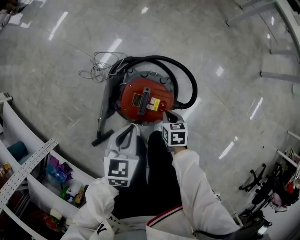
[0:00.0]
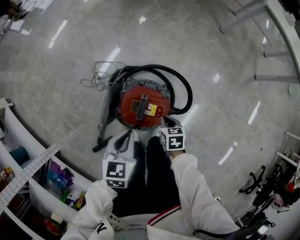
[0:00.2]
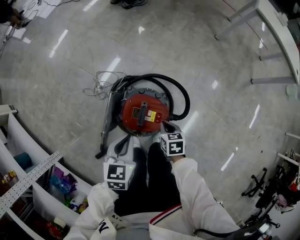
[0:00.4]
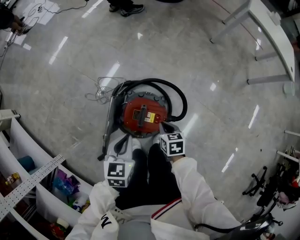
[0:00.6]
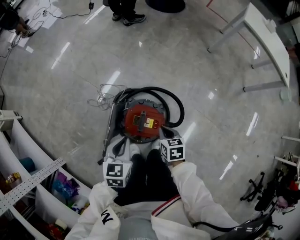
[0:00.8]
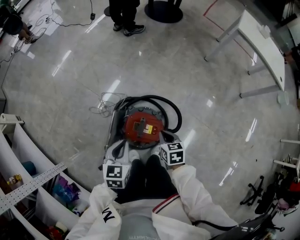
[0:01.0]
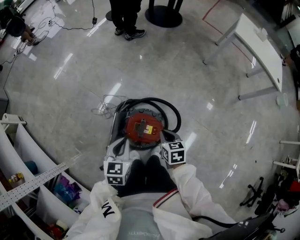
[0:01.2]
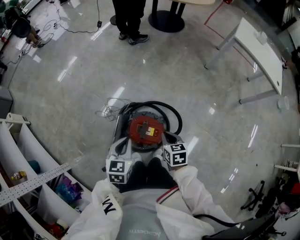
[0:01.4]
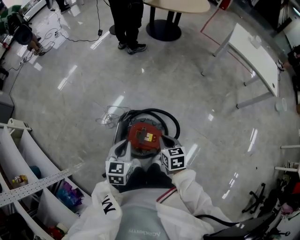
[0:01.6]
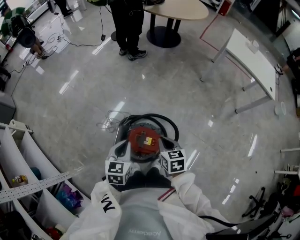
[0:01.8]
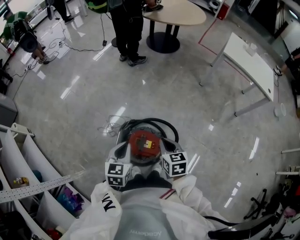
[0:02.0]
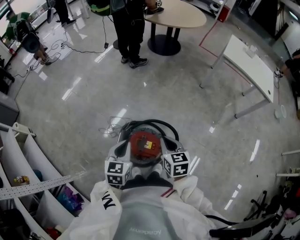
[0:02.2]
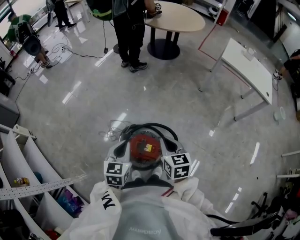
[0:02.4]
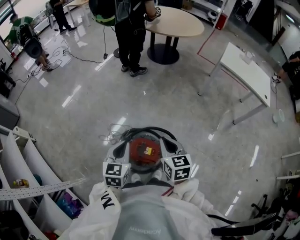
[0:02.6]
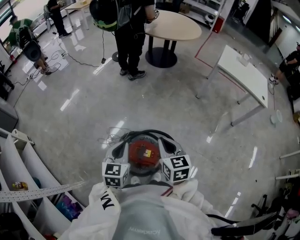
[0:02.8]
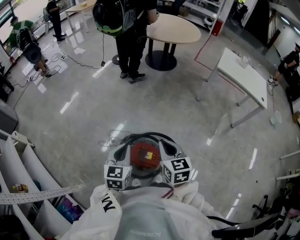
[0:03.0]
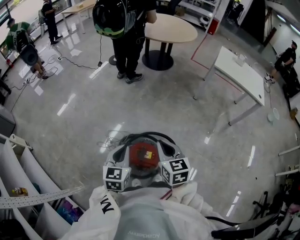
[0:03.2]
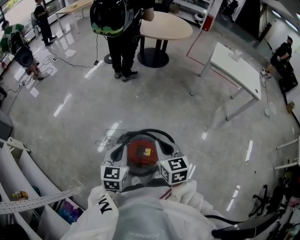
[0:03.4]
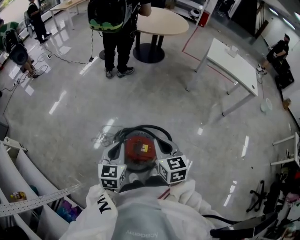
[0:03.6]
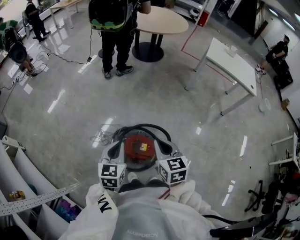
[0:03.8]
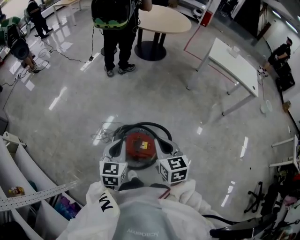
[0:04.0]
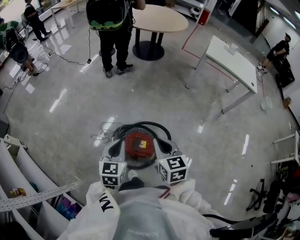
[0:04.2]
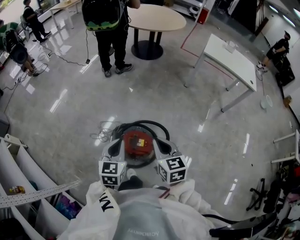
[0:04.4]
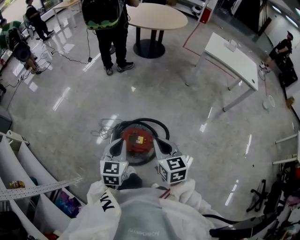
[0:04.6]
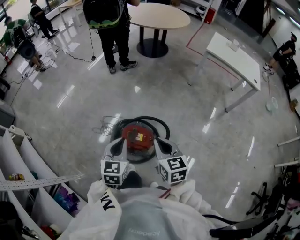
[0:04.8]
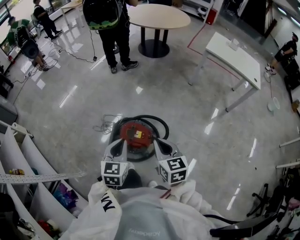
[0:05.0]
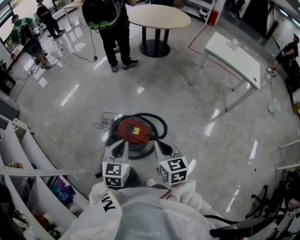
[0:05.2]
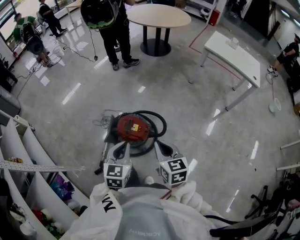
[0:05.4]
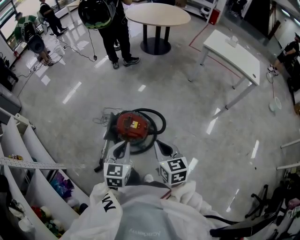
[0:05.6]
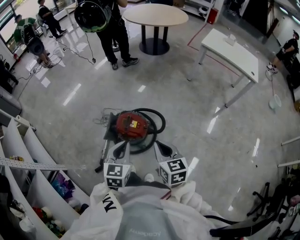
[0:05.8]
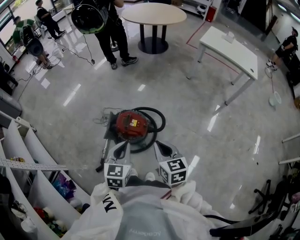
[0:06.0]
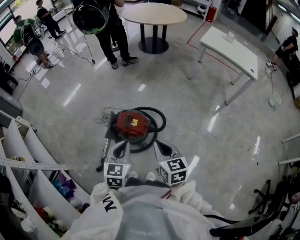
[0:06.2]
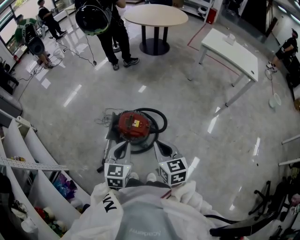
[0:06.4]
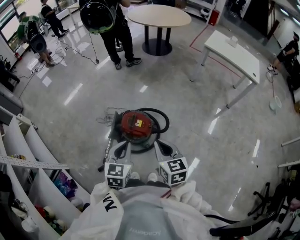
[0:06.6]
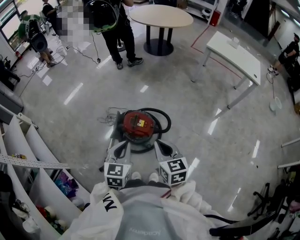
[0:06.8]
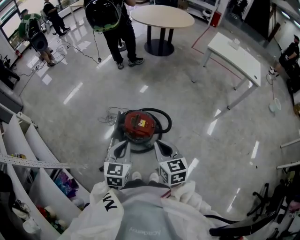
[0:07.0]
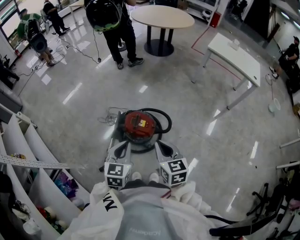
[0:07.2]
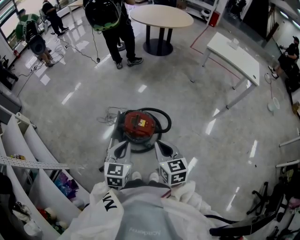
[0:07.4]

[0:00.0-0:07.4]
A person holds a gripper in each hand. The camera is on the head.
0.0 to 1.4 s: The right gripper shifts roughly 25 cm upward. The left gripper shifts about 15 cm upward.
1.4 to 3.0 s: The right gripper shifts approximately 20 cm upward, and changes its angle by some 20 degrees, while the left gripper moves upward, approximately 10 cm.
3.0 to 4.4 s: The right gripper moves backward, roughly 5 cm.
4.4 to 6.0 s: Both grippers move backward and to the right, about 20 cm.
6.0 to 7.4 s: The grippers both shift to the left by roughly 10 cm.

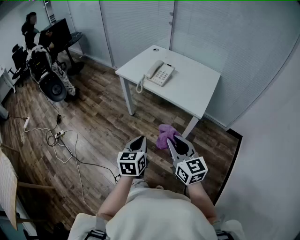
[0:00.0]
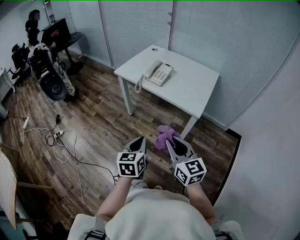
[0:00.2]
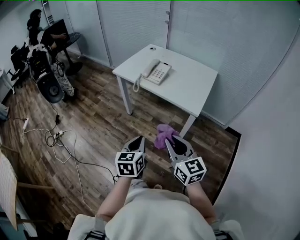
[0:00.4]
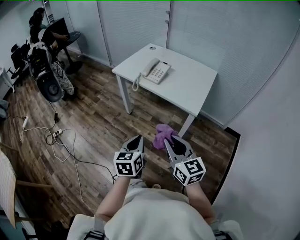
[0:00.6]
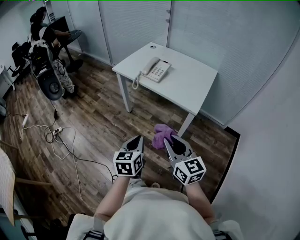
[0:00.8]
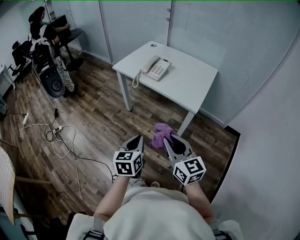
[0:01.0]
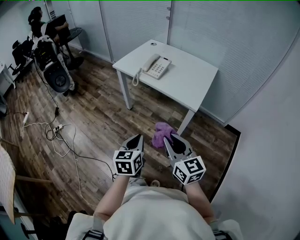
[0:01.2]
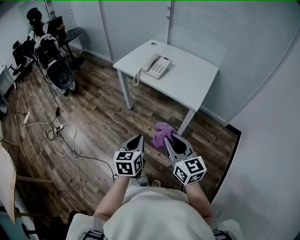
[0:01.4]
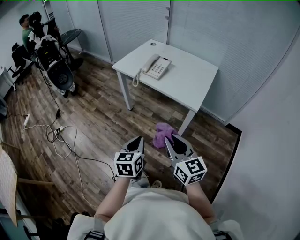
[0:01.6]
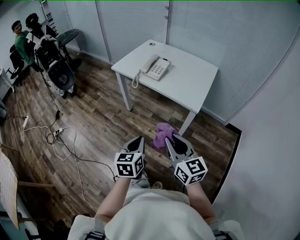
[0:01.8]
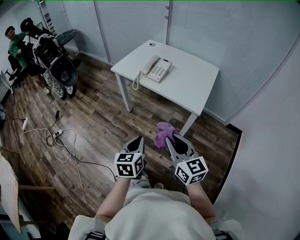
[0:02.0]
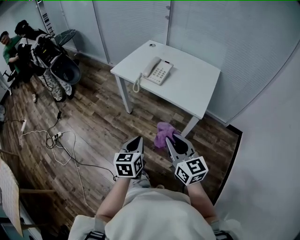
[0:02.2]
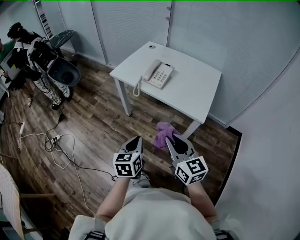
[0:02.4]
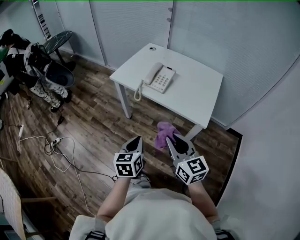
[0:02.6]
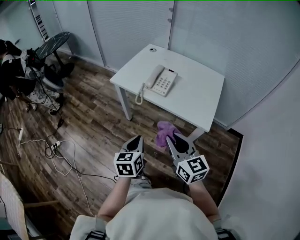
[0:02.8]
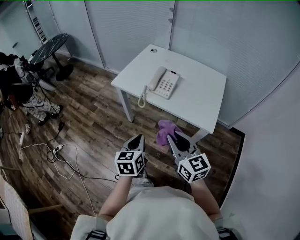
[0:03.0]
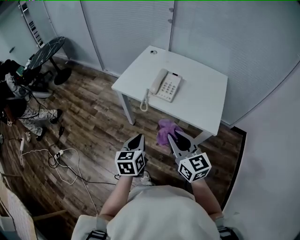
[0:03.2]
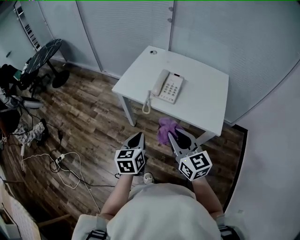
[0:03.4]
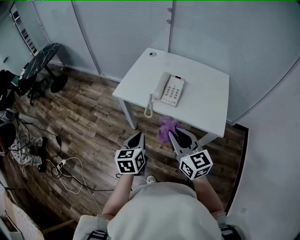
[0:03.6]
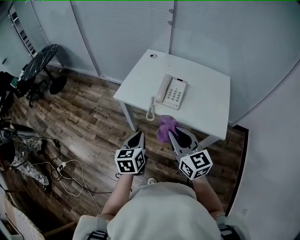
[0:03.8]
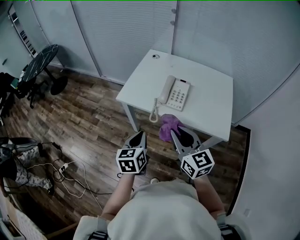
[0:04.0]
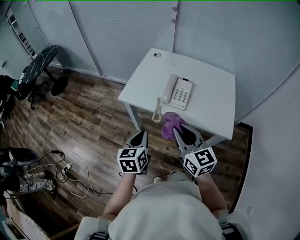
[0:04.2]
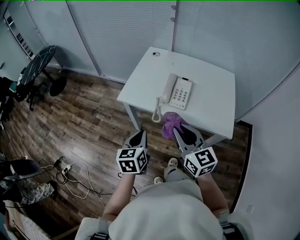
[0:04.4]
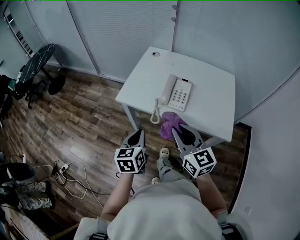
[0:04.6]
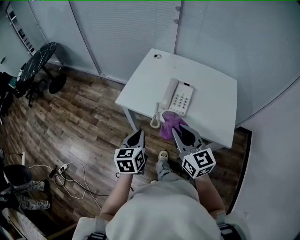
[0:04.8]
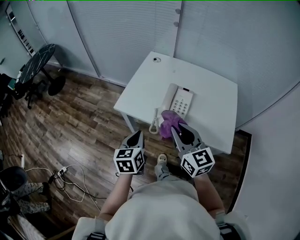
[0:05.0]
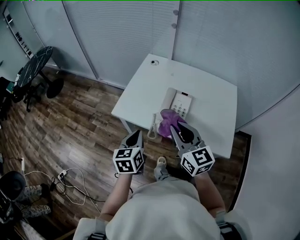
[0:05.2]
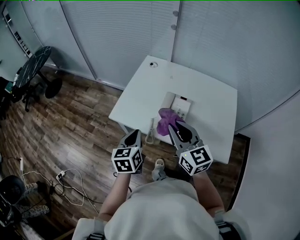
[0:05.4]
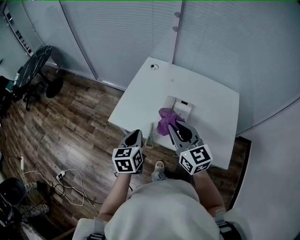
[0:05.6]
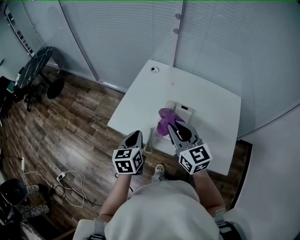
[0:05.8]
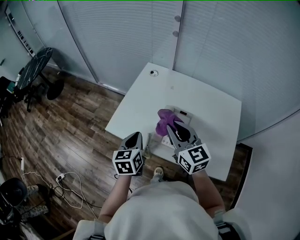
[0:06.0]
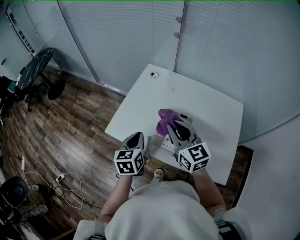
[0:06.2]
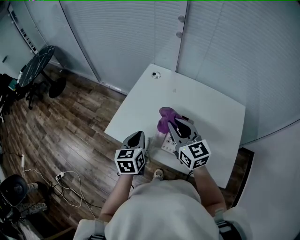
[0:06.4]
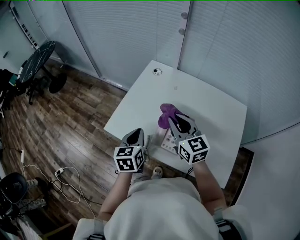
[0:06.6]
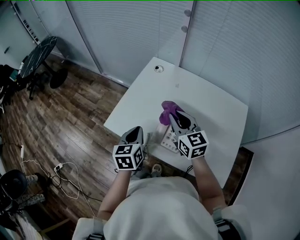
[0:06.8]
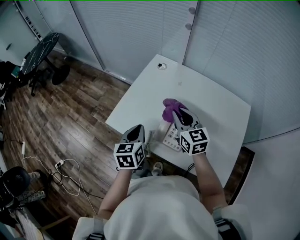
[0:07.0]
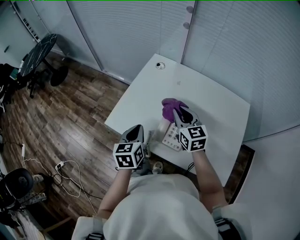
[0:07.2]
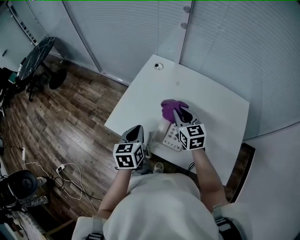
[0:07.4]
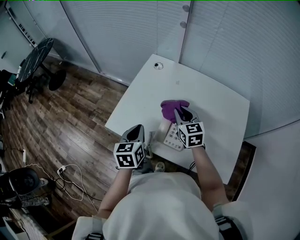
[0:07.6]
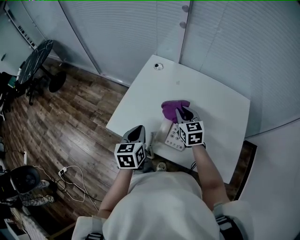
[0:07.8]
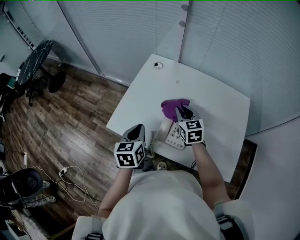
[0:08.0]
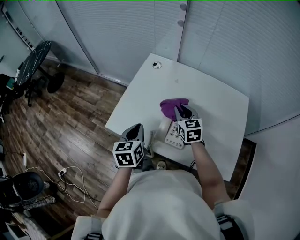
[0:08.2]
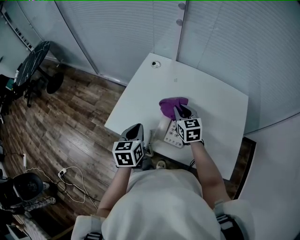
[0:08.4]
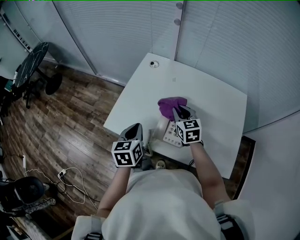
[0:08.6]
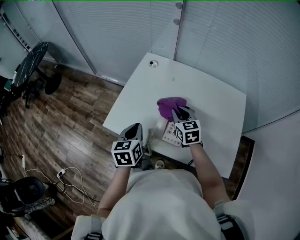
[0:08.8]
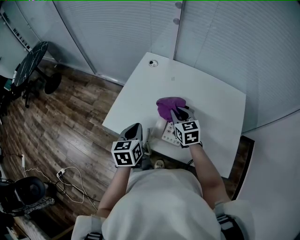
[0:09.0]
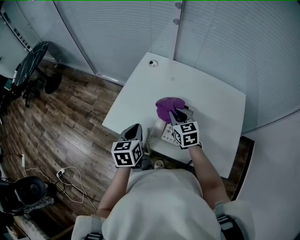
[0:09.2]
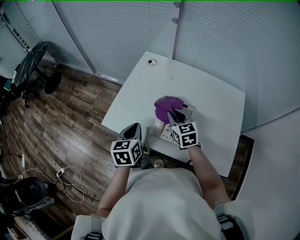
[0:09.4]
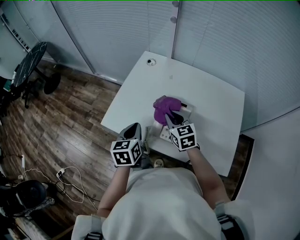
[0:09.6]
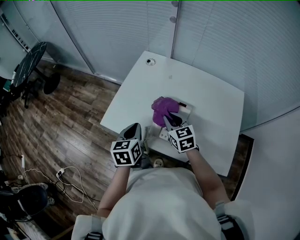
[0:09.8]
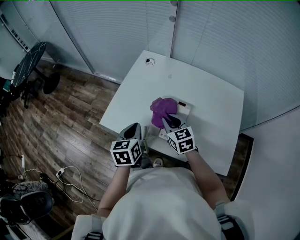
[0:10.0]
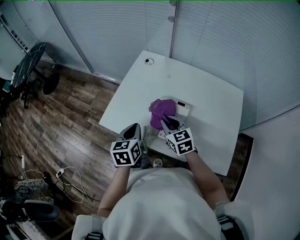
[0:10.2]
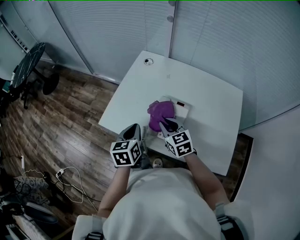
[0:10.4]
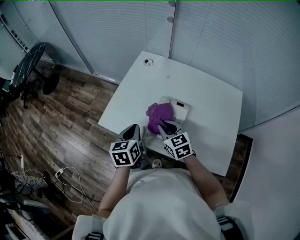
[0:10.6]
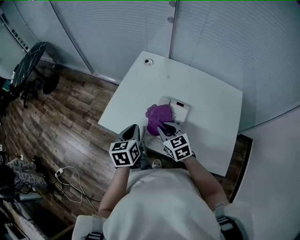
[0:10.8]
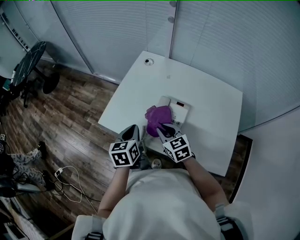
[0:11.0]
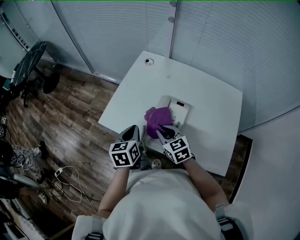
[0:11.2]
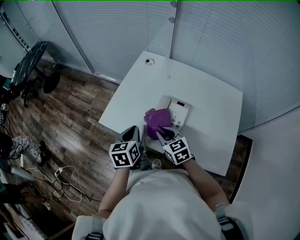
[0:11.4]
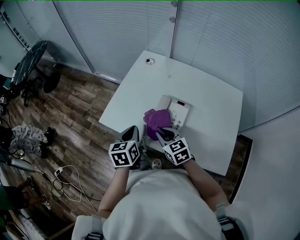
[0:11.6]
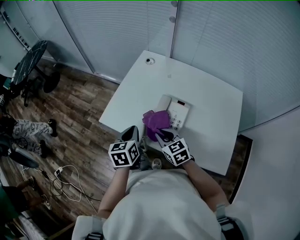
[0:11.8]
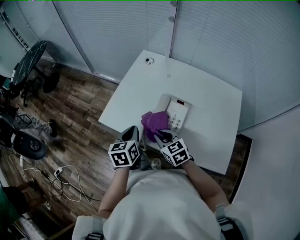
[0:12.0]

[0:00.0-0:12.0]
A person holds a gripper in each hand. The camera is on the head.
0.0 to 1.6 s: There are only small adjustments of the grippers.
1.6 to 3.0 s: Both grippers move forward, about 20 cm.
3.0 to 4.4 s: The grippers both shift forward and to the left by some 15 cm.
4.4 to 6.0 s: The two grippers go some 25 cm forward.
6.0 to 7.6 s: The right gripper heads downward and forward, covering about 15 cm.
7.6 to 9.0 s: The grippers move only a little.
9.0 to 10.4 s: The right gripper travels backward by about 5 cm.
10.4 to 12.0 s: The right gripper travels backward by roughly 5 cm.

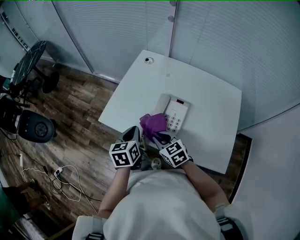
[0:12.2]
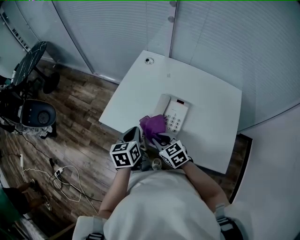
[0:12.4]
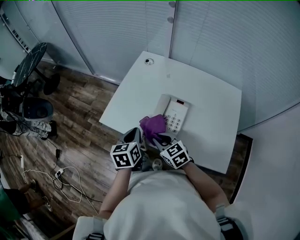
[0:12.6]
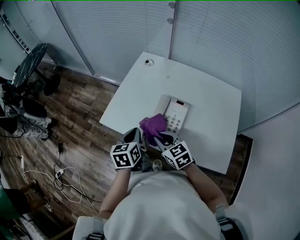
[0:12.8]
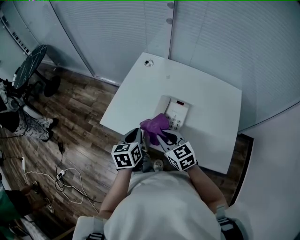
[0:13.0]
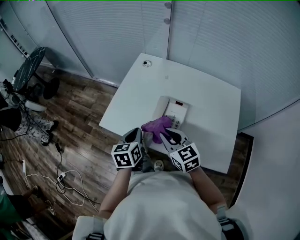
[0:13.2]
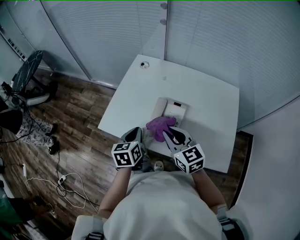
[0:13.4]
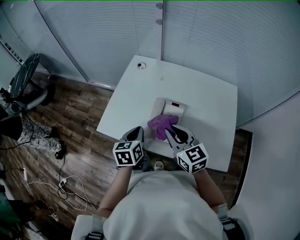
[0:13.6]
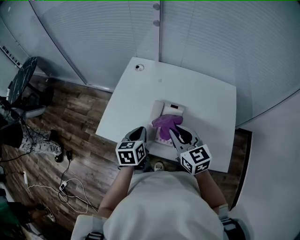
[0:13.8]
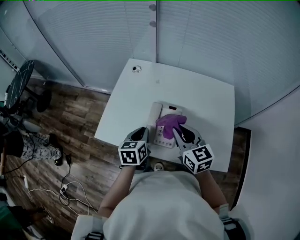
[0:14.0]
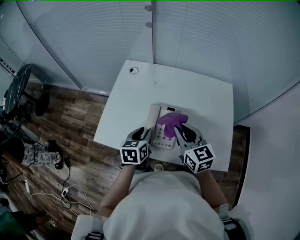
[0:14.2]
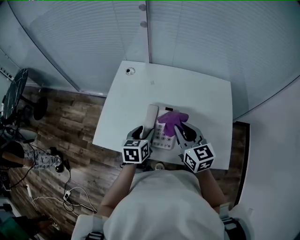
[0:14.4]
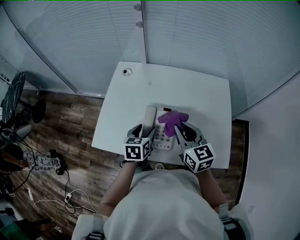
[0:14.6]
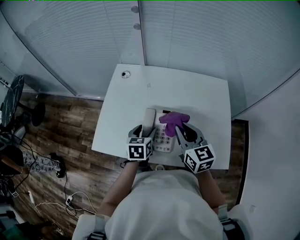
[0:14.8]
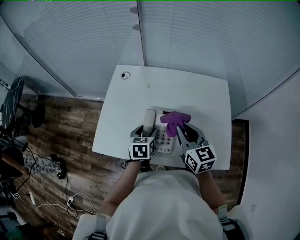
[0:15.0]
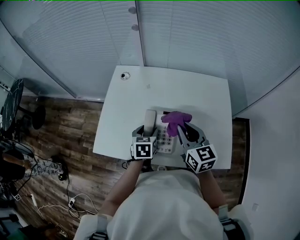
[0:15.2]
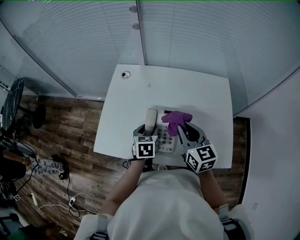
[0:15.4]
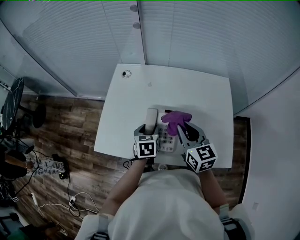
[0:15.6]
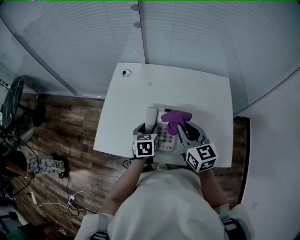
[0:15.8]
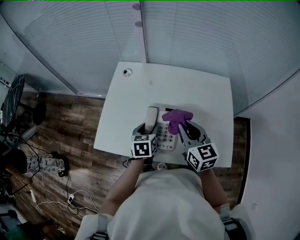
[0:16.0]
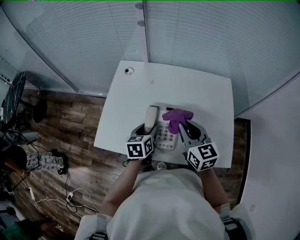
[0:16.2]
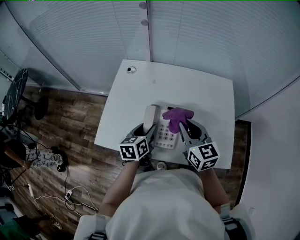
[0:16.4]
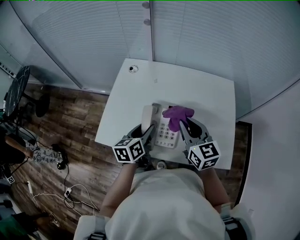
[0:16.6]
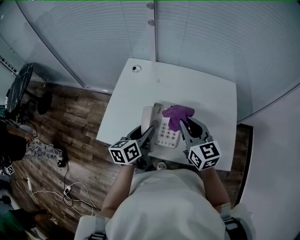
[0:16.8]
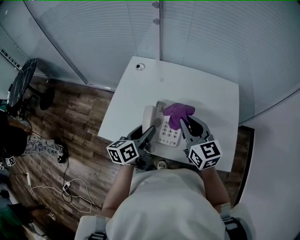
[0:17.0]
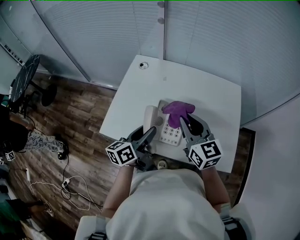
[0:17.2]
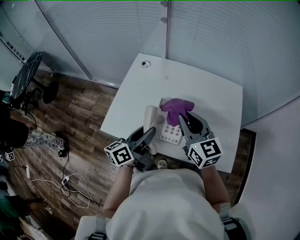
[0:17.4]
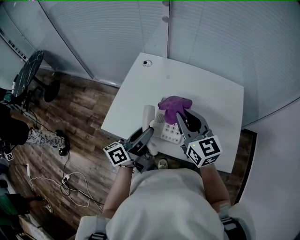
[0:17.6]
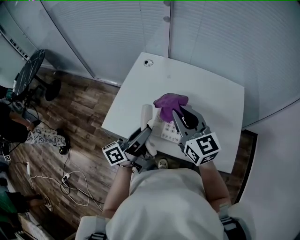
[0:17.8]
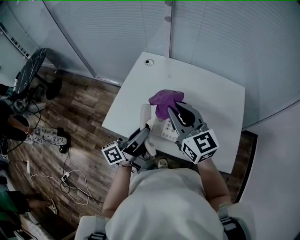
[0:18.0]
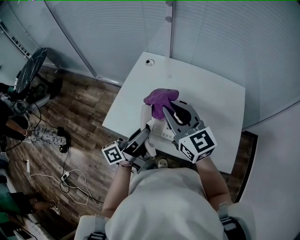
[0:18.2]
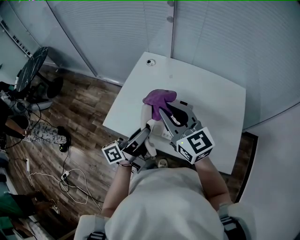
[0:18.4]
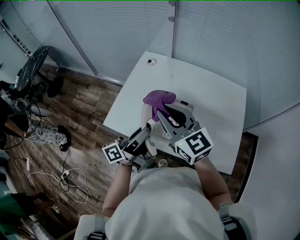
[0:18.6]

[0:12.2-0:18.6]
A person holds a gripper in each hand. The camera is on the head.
12.2 to 13.8 s: The left gripper heads to the right, covering roughly 5 cm. The right gripper heads upward and to the right, covering approximately 15 cm, and changes its angle by approximately 30 degrees.
13.8 to 15.4 s: The left gripper is displaced forward, to the right and downward by some 10 cm, and opens. Meanwhile the right gripper shifts roughly 5 cm to the right.
15.4 to 17.0 s: The left gripper goes roughly 10 cm upward and backward, and turns by about 40 degrees.
17.0 to 18.6 s: The right gripper travels to the left and upward by about 15 cm, and swivels approximately 20 degrees; the left gripper moves upward, about 5 cm, and changes its angle by about 40 degrees.
